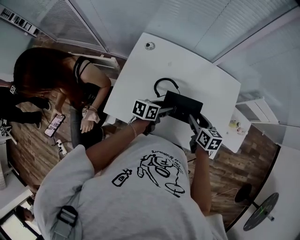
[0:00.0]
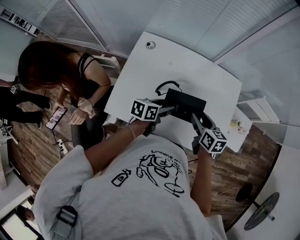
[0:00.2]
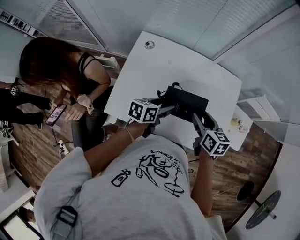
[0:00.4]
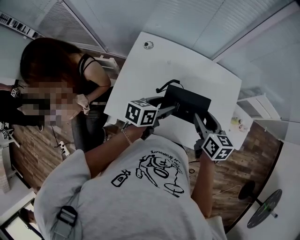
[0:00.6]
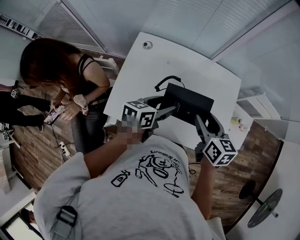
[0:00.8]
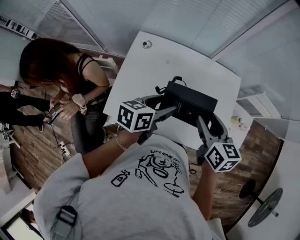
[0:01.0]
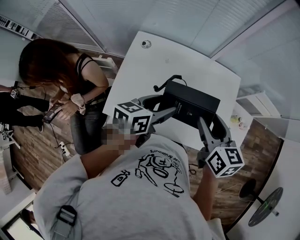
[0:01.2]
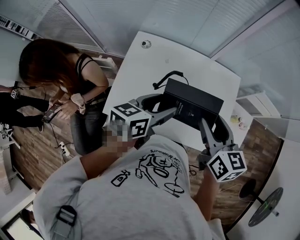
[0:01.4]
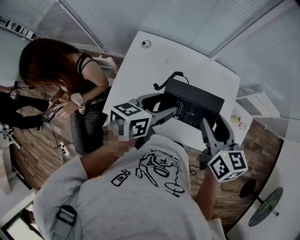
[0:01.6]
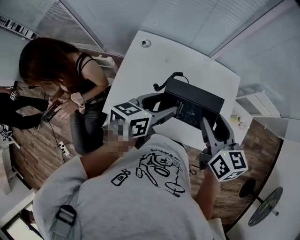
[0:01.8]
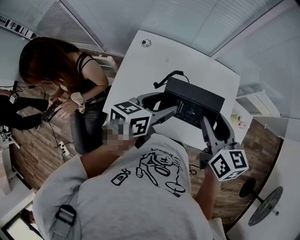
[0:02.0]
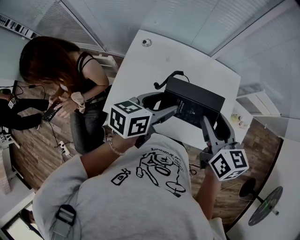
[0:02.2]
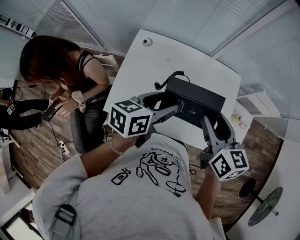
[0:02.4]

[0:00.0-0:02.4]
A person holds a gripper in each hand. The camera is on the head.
0:00.0 to 0:01.2: Both grippers travel together upward, approximately 20 cm.
0:01.2 to 0:02.4: The grippers stay close to where they were, moving slightly.

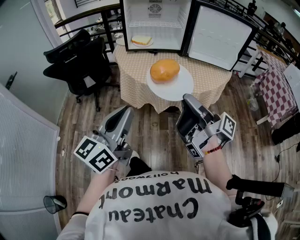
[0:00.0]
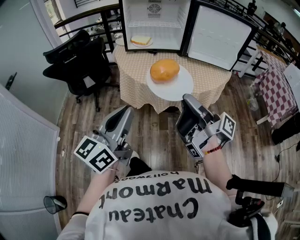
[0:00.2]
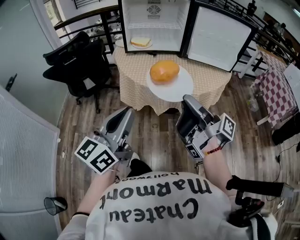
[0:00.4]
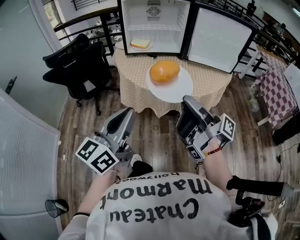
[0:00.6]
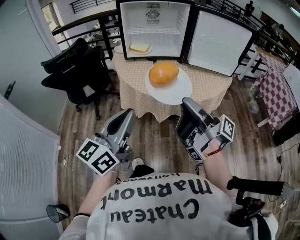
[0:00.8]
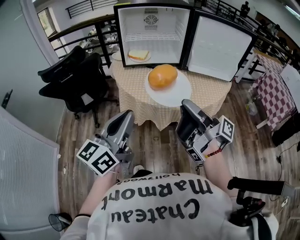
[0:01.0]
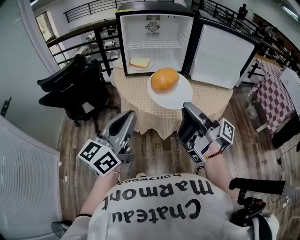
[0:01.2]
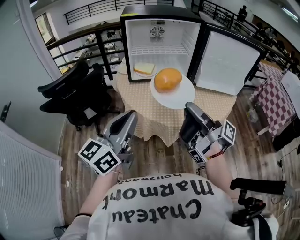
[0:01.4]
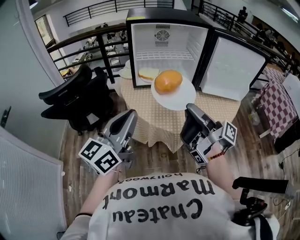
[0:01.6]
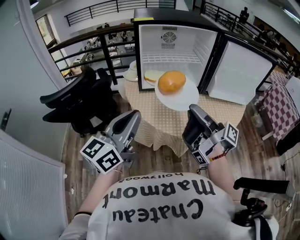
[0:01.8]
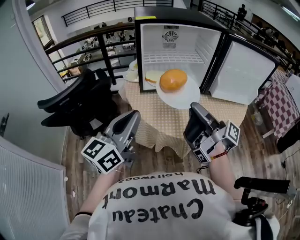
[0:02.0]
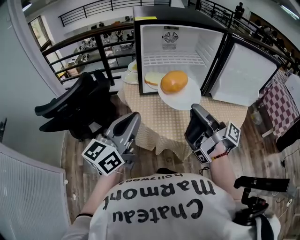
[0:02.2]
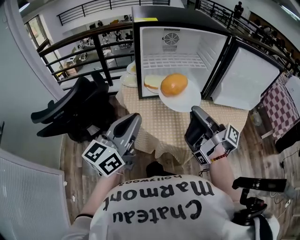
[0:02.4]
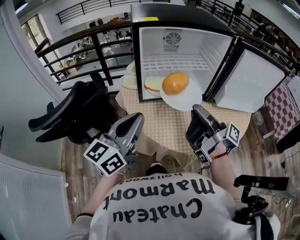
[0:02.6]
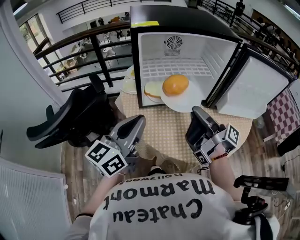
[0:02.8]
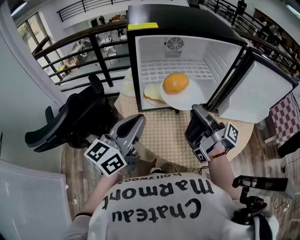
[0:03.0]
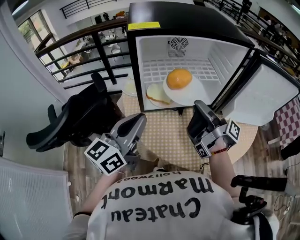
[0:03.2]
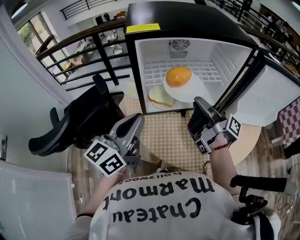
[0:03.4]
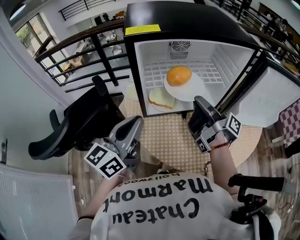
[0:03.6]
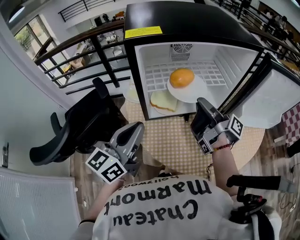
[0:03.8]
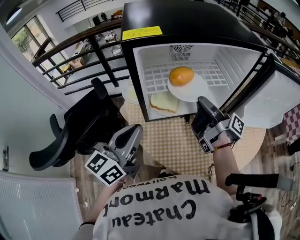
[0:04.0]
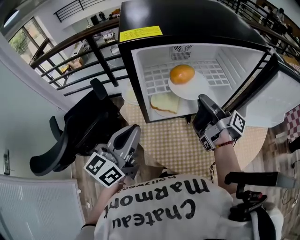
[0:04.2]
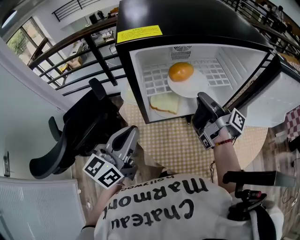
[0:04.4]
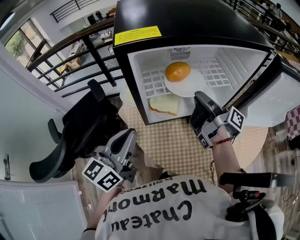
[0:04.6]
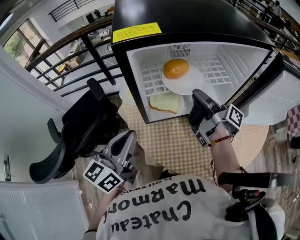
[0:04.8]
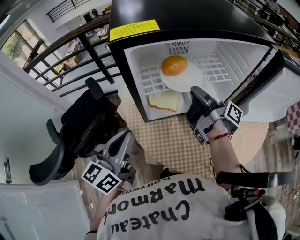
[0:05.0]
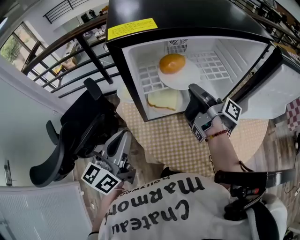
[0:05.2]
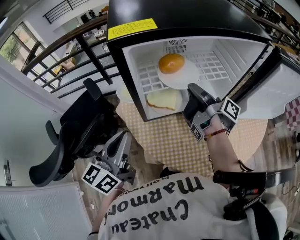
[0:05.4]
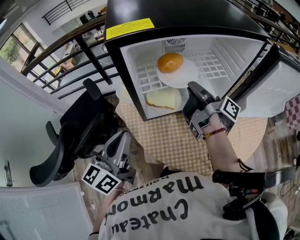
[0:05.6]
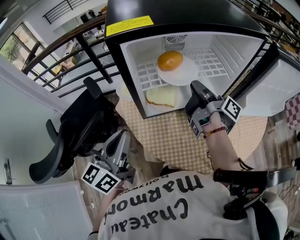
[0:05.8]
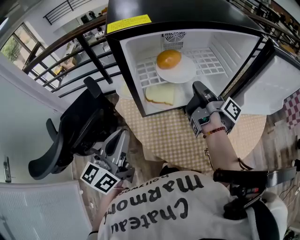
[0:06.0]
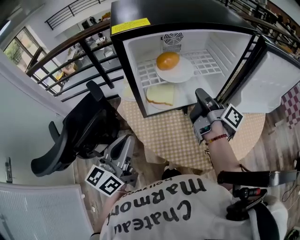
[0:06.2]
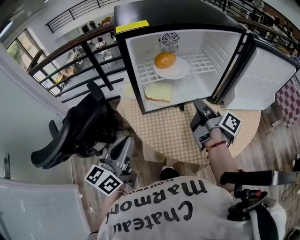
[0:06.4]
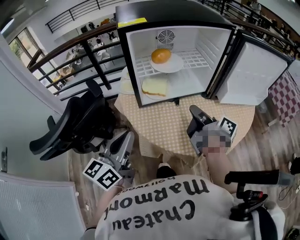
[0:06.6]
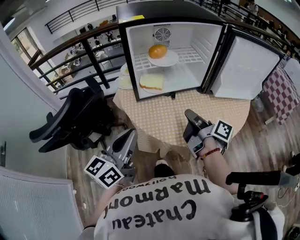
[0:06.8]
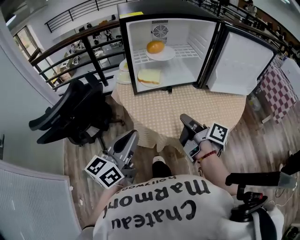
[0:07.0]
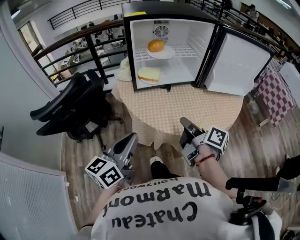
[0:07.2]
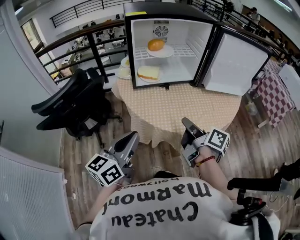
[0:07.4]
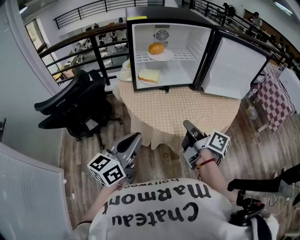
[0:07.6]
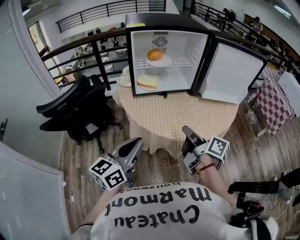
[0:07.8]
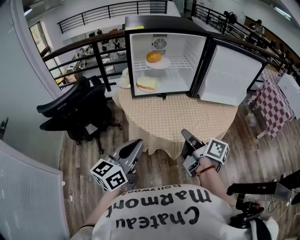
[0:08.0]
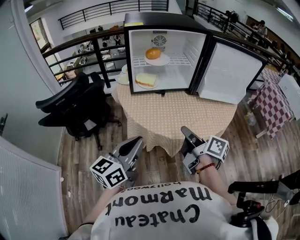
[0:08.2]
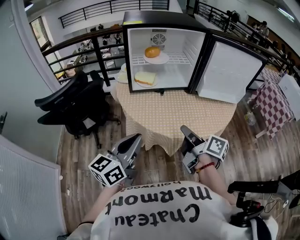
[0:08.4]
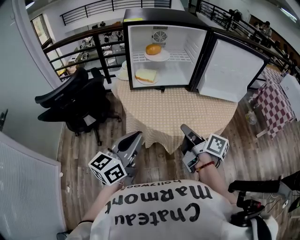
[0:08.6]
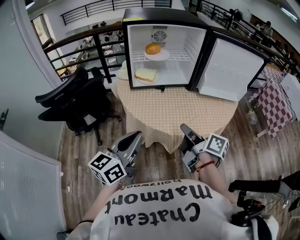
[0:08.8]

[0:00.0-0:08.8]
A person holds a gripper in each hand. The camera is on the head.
0:00.0 to 0:01.4: The left gripper changes place by about 20 cm.
0:01.4 to 0:03.0: The left gripper ends up some 25 cm from where it was.
0:03.0 to 0:04.4: The left gripper shifts by roughly 10 cm.
0:05.8 to 0:07.4: The left gripper moves roughly 25 cm.
0:07.4 to 0:08.8: The left gripper changes place by approximately 10 cm.

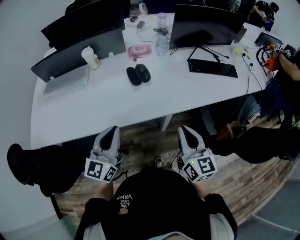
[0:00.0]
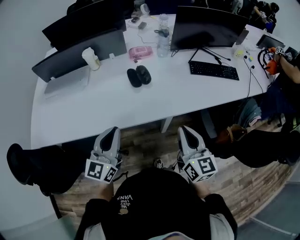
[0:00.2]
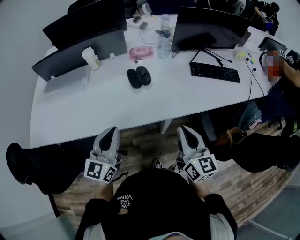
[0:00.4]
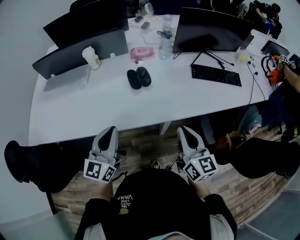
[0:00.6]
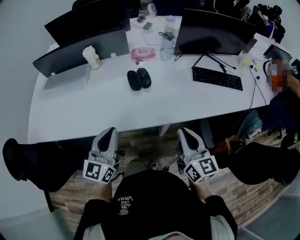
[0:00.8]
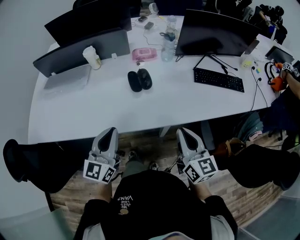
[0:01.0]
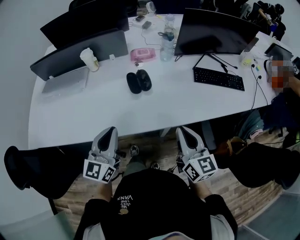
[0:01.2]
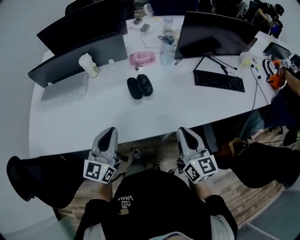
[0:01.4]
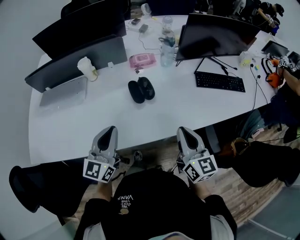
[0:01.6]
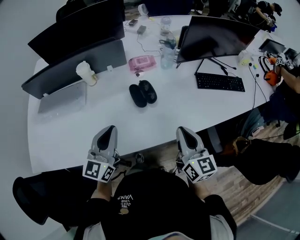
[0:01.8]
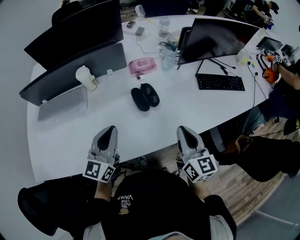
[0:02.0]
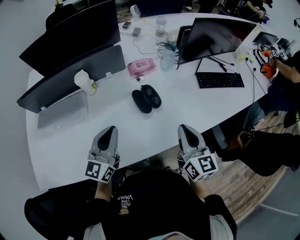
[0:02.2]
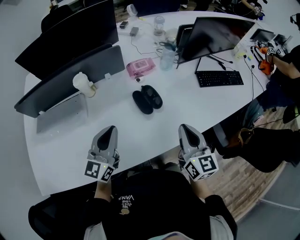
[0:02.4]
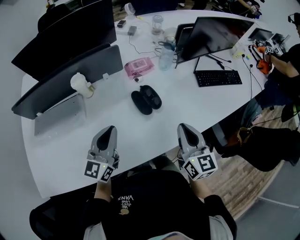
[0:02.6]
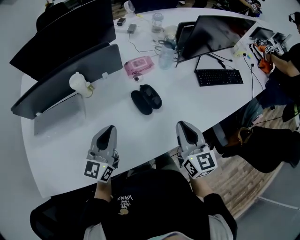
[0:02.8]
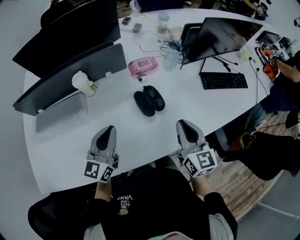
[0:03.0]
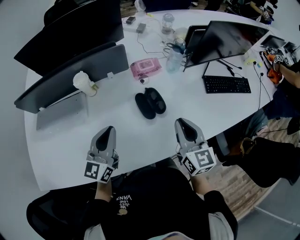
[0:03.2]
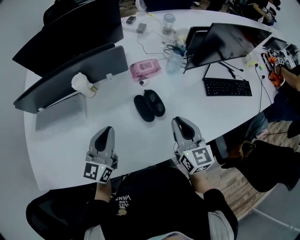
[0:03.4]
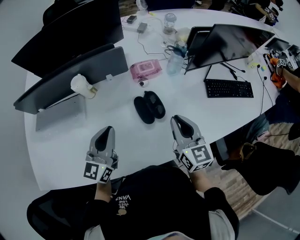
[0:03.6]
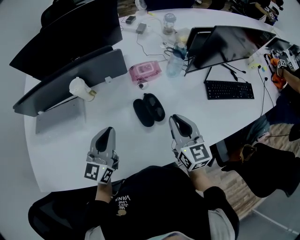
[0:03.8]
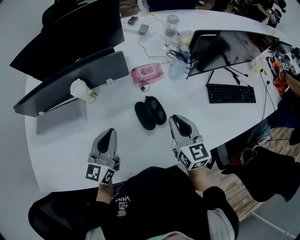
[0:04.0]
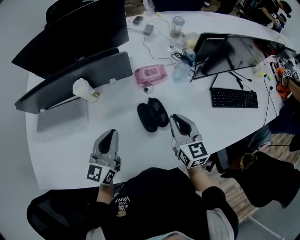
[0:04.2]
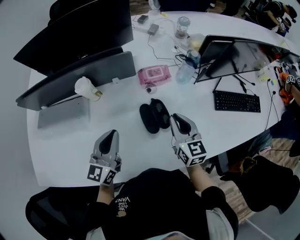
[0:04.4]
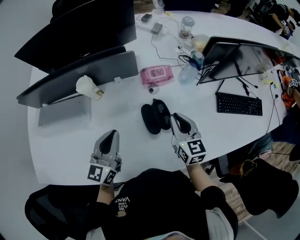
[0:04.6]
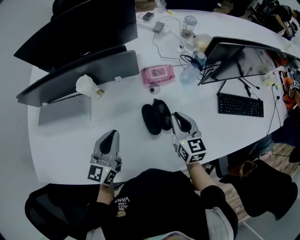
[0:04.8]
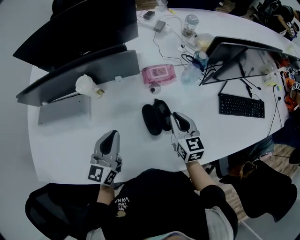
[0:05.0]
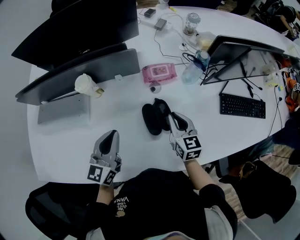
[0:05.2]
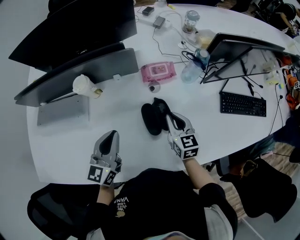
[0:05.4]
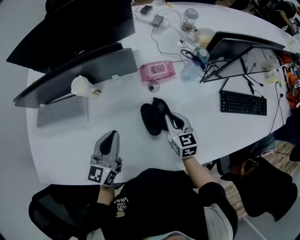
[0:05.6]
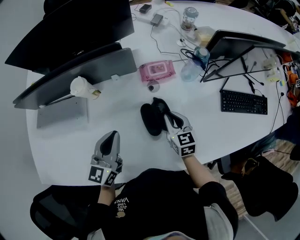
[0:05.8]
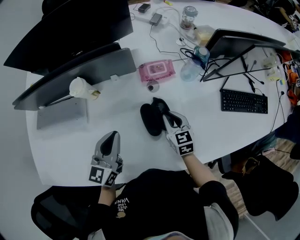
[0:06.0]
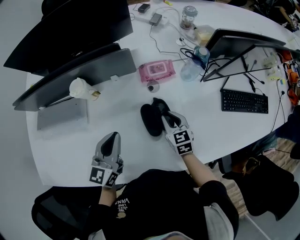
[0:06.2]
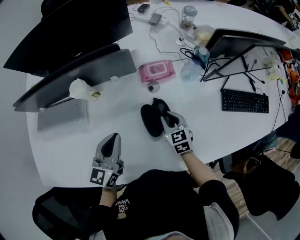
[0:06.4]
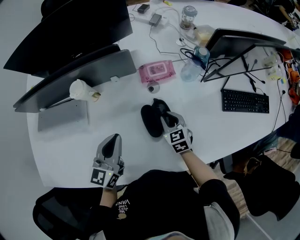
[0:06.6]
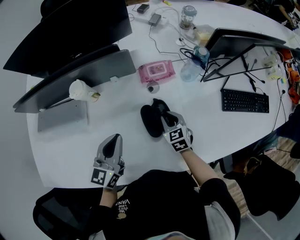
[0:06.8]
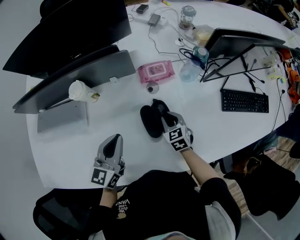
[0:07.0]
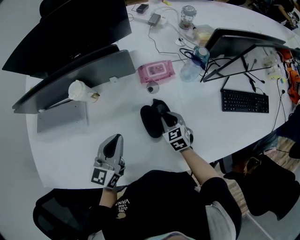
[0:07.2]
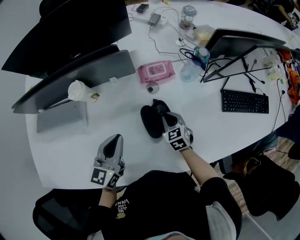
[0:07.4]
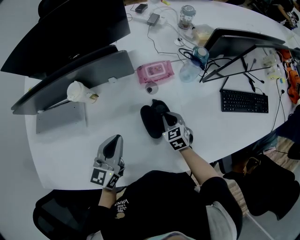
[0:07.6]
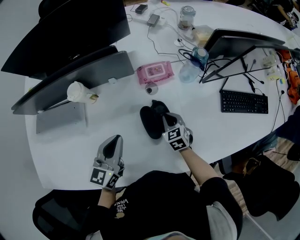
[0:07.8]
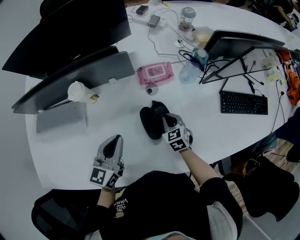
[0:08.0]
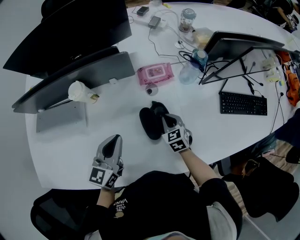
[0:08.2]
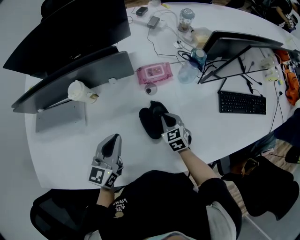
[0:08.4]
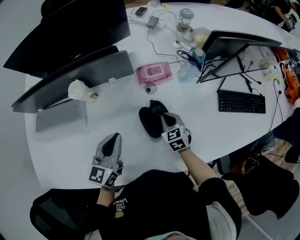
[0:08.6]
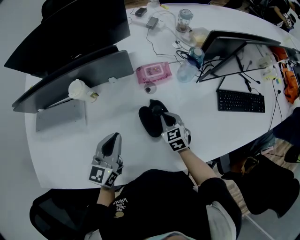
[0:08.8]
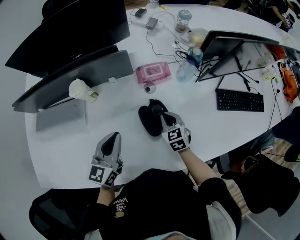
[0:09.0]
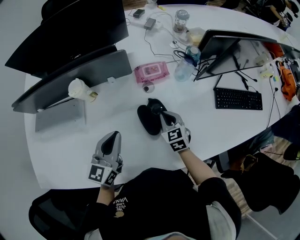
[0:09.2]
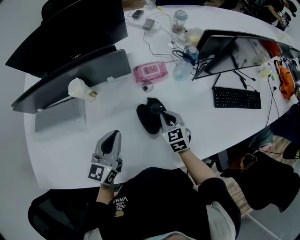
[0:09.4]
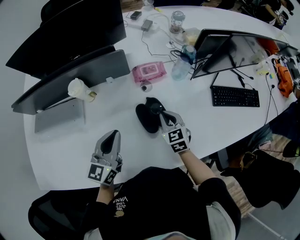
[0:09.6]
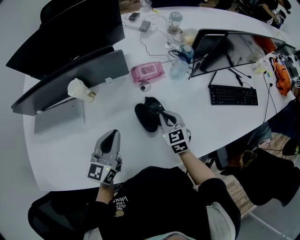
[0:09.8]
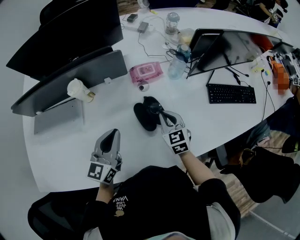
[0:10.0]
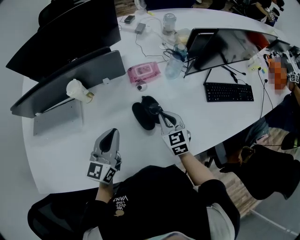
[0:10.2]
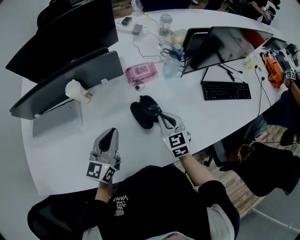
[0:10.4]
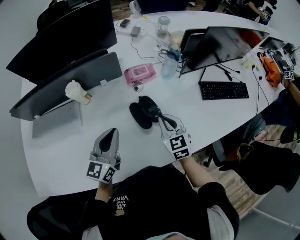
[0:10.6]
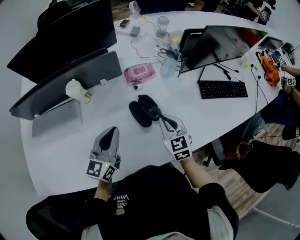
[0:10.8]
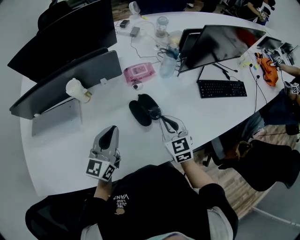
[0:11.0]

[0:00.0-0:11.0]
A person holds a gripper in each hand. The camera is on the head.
0:00.0 to 0:01.6: The two grippers go roughly 15 cm forward.
0:01.6 to 0:03.2: The two grippers go some 15 cm forward and to the left.
0:03.2 to 0:04.8: The left gripper goes roughly 5 cm forward. The right gripper travels forward and downward by roughly 15 cm.
0:04.8 to 0:06.2: The right gripper heads downward, covering approximately 10 cm.
0:06.2 to 0:07.8: The right gripper travels downward by approximately 5 cm.
0:07.8 to 0:09.4: The right gripper is displaced upward by about 5 cm.
0:09.4 to 0:11.0: The right gripper shifts some 15 cm upward and backward.

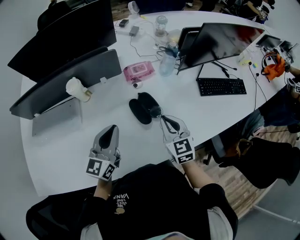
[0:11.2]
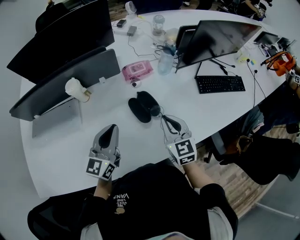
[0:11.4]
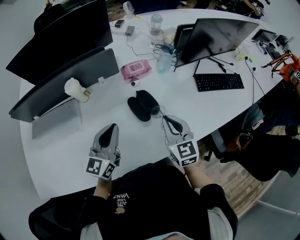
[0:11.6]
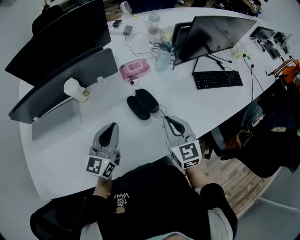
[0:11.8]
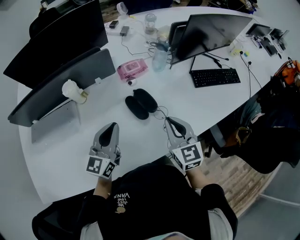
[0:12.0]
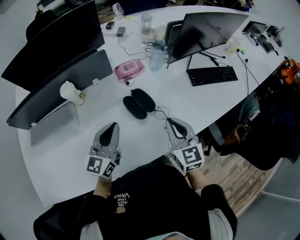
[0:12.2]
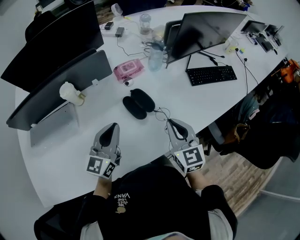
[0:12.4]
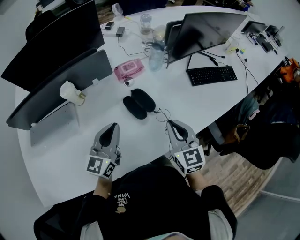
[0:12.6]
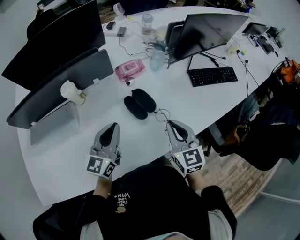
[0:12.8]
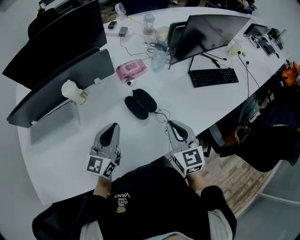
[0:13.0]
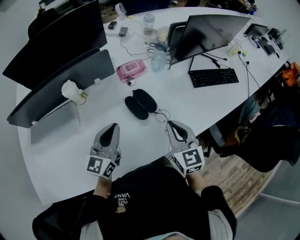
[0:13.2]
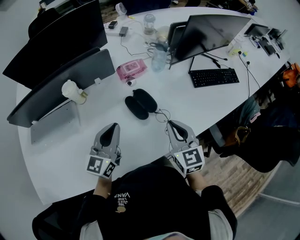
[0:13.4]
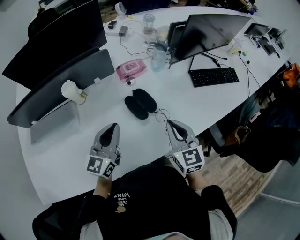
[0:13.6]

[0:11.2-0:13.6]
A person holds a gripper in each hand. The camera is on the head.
0:11.2 to 0:12.4: The right gripper heads backward and upward, covering roughly 10 cm.
0:12.4 to 0:13.6: The two grippers keep their place.
